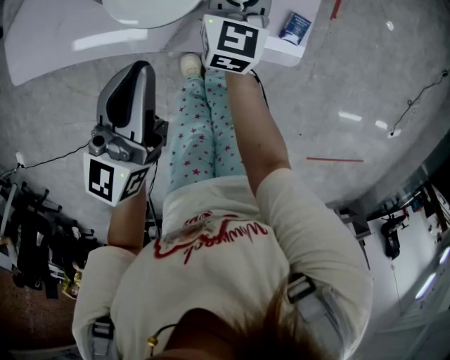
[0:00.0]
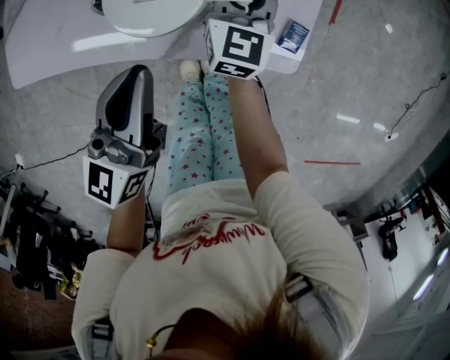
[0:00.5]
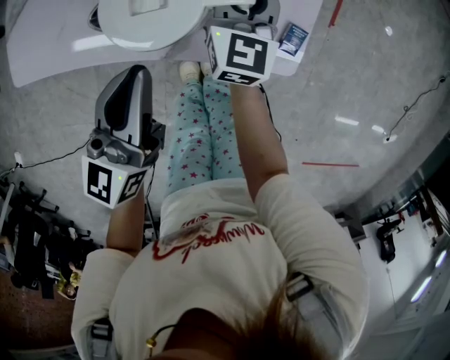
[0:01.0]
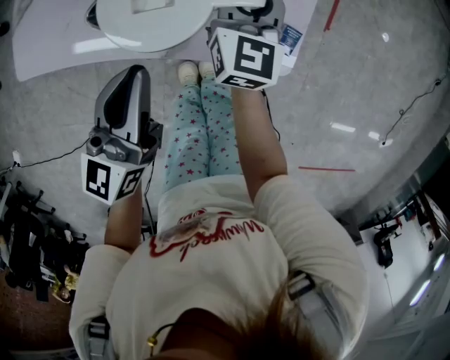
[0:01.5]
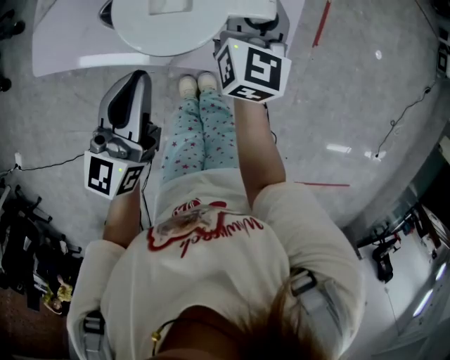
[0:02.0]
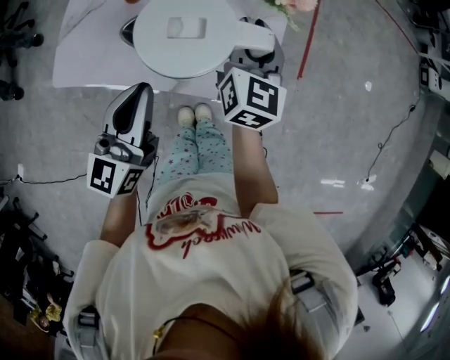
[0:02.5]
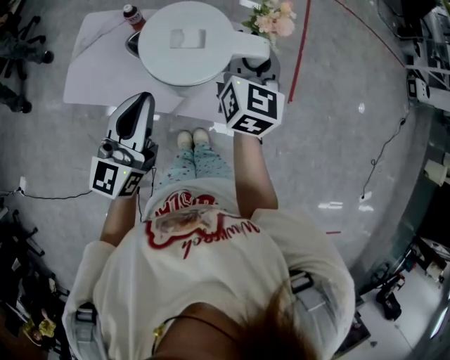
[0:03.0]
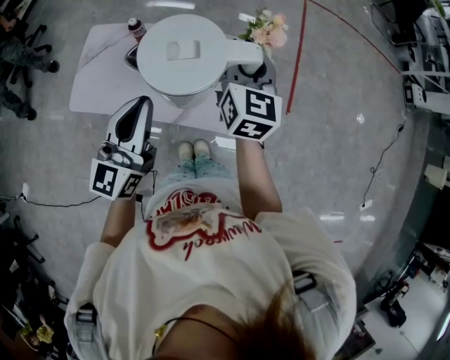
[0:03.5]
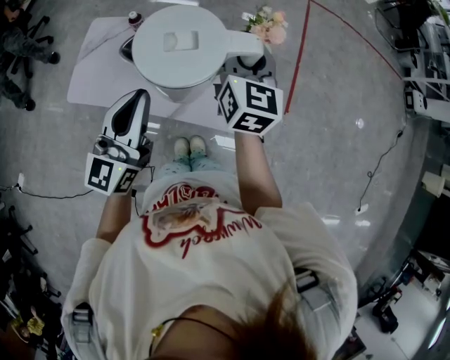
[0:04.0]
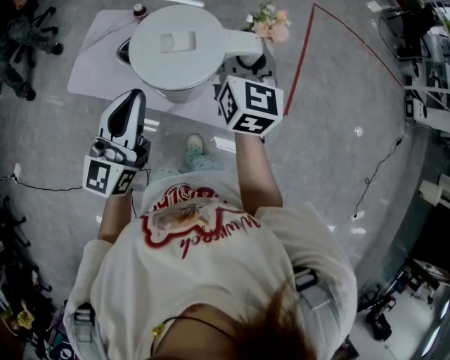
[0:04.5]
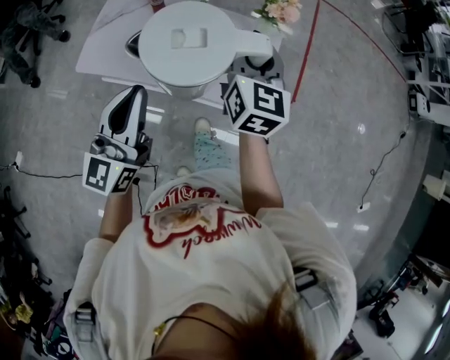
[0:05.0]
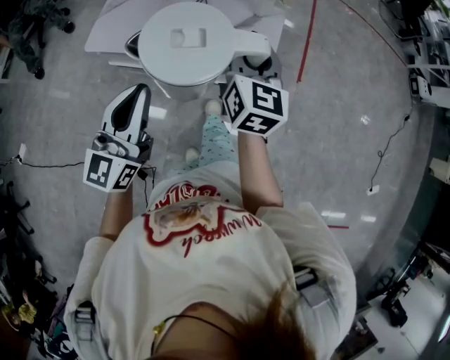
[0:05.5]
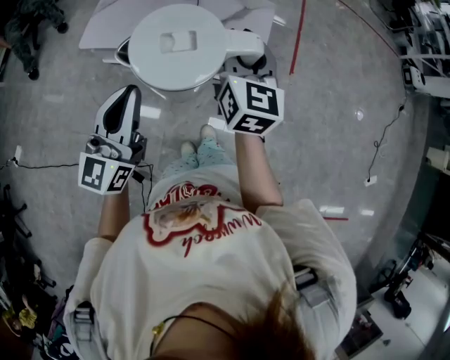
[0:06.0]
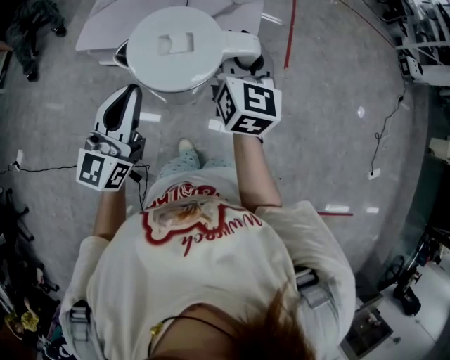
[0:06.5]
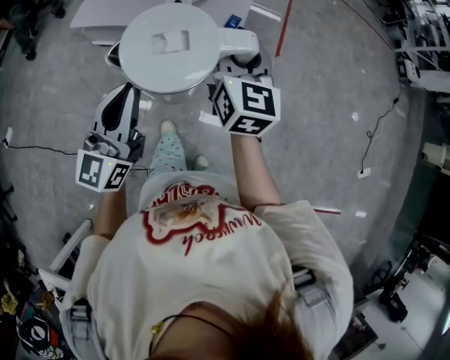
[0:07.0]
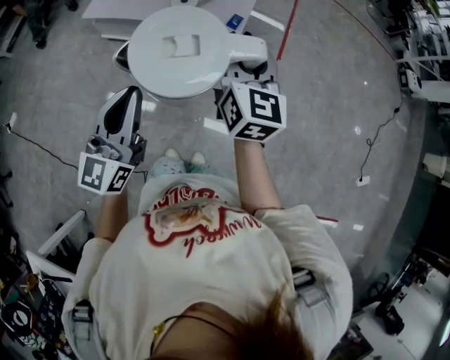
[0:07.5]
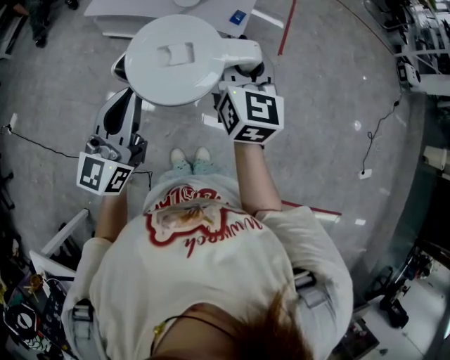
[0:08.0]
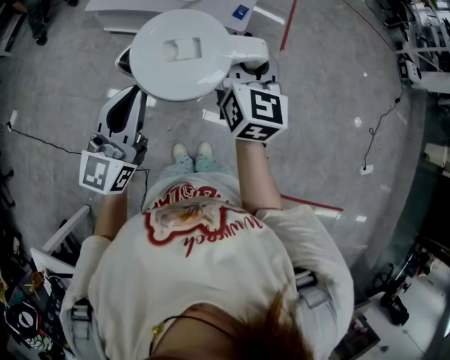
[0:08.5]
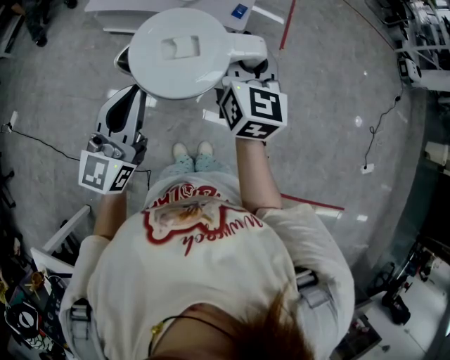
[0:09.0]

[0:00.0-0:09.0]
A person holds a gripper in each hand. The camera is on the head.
0:00.0 to 0:02.0: The left gripper shifts about 10 cm upward. Meanwhile the right gripper goes some 20 cm upward.
0:02.0 to 0:04.5: The two grippers go approximately 20 cm upward.
0:04.5 to 0:07.0: Both grippers are carried backward, approximately 50 cm.
0:07.0 to 0:09.0: The grippers both shift backward by some 15 cm.

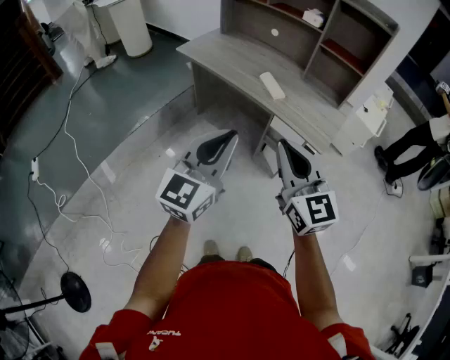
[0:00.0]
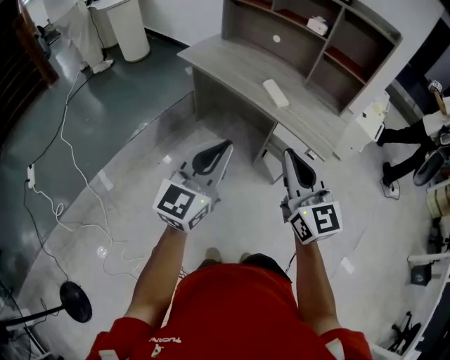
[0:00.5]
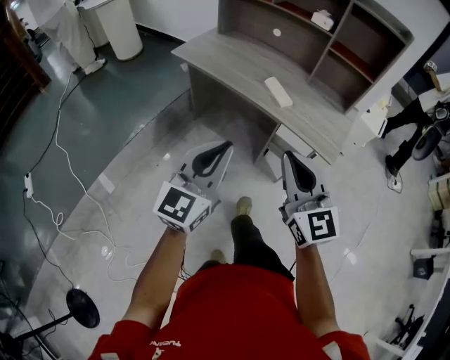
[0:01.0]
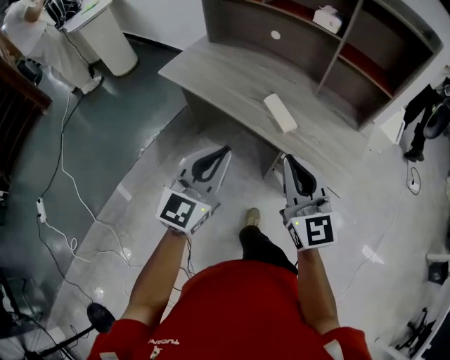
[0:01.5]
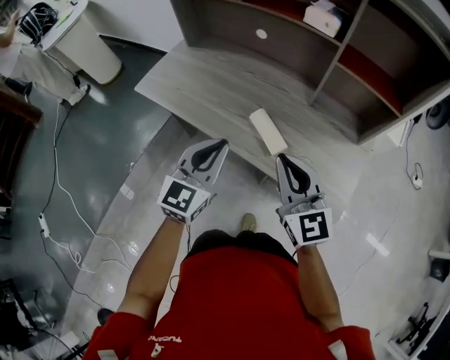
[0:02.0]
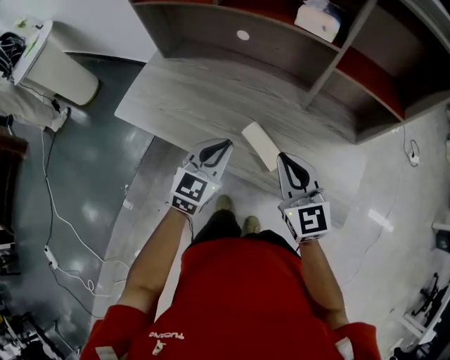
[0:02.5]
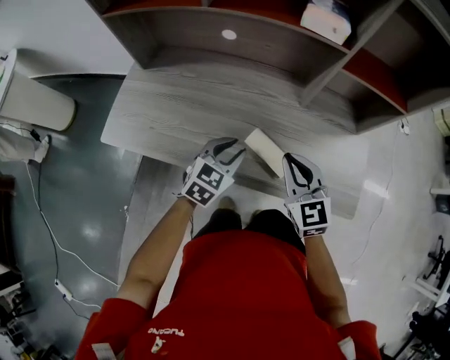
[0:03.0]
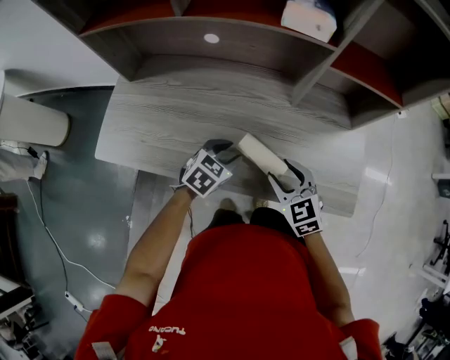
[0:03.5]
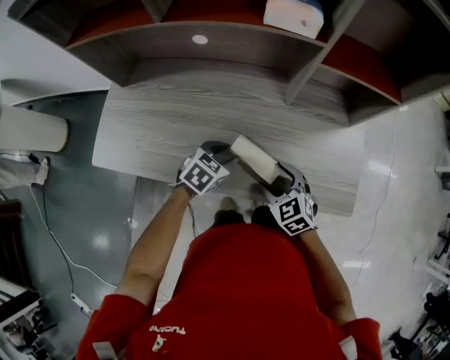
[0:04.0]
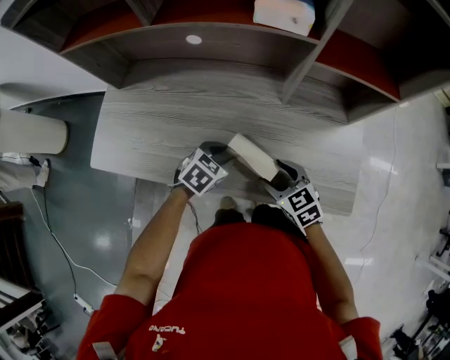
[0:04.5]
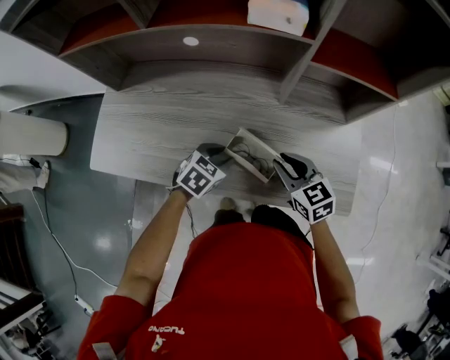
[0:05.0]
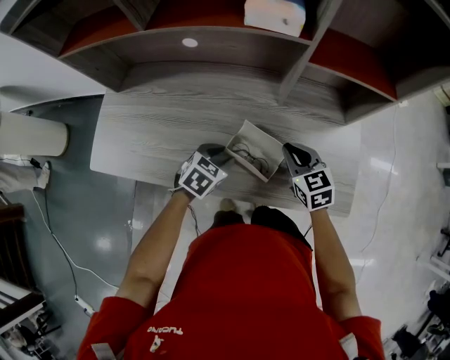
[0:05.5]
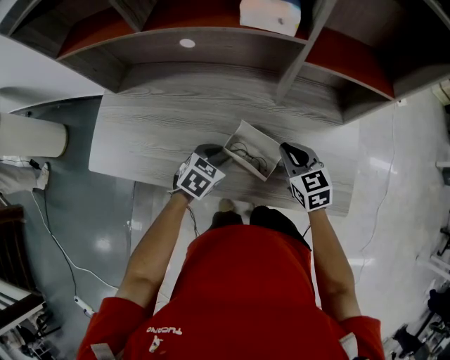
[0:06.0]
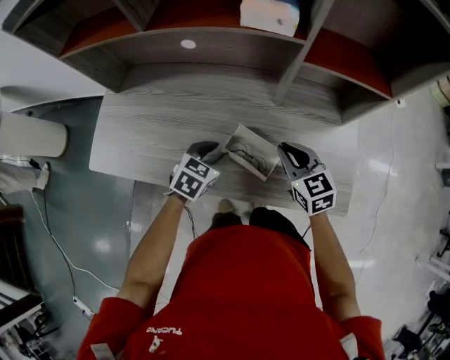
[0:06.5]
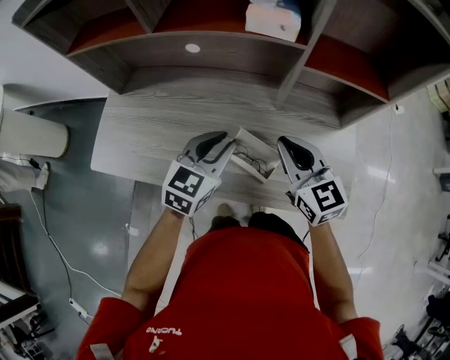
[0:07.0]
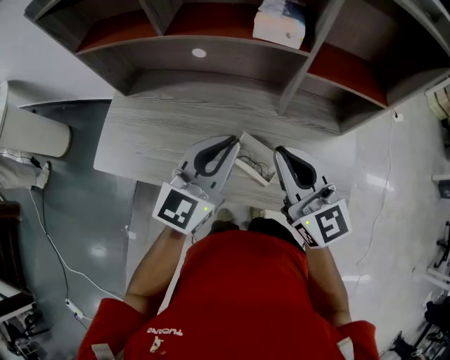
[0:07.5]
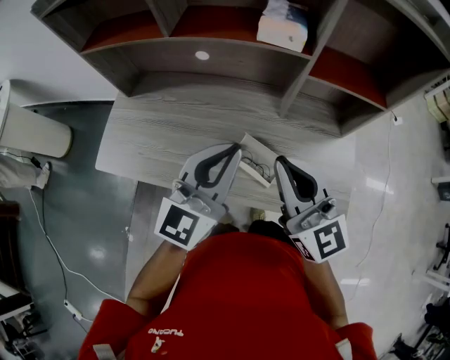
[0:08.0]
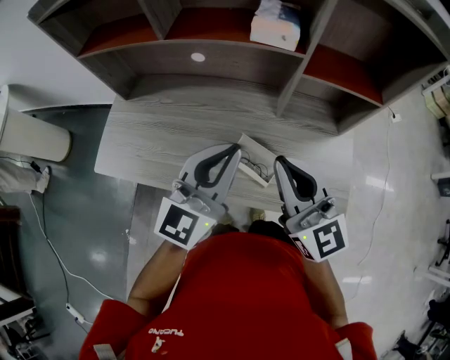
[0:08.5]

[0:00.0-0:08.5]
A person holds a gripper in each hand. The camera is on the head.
0:00.0 to 0:02.0: The two grippers go approximately 40 cm forward.
0:02.0 to 0:04.0: Both grippers travel together downward, about 20 cm. The right gripper tilts its fingers roughly 40 degrees downward, and opens up. The left gripper tips its fingers downward by some 40 degrees, and opens its fingers.
0:04.0 to 0:06.5: The right gripper heads forward and upward, covering some 10 cm, swivels roughly 20 degrees, and closes its fingers.
0:06.5 to 0:08.5: Both grippers move upward, about 25 cm. The right gripper angles its fingers upward, by roughly 30 degrees. Meanwhile the left gripper points its fingers approximately 50 degrees further upward, and closes its fingers.

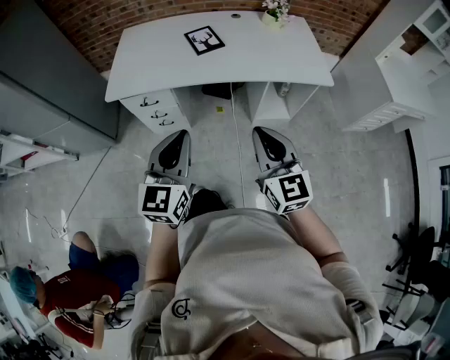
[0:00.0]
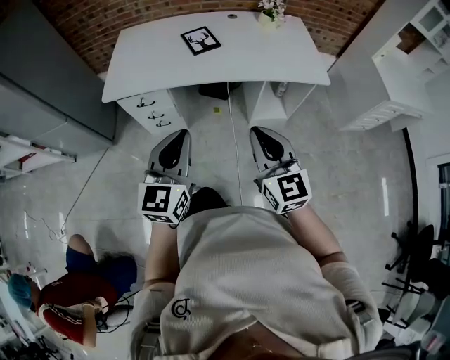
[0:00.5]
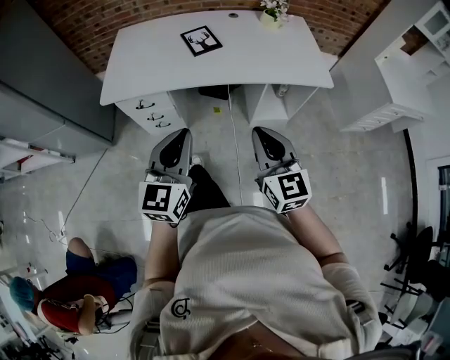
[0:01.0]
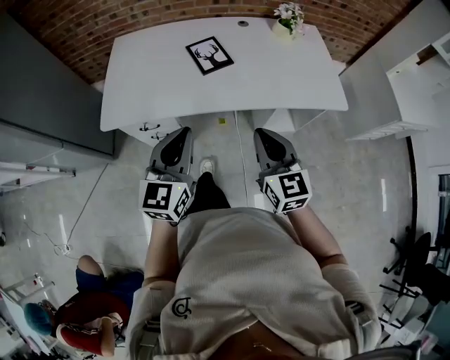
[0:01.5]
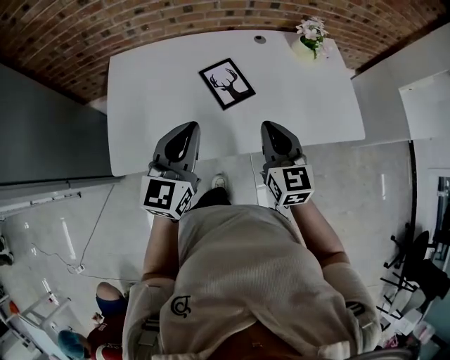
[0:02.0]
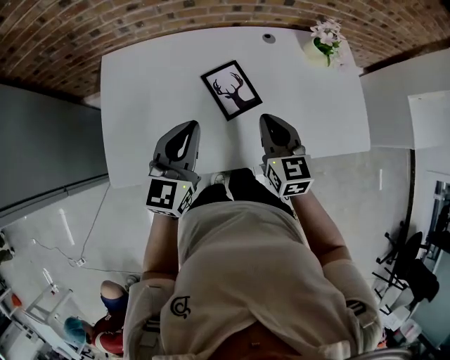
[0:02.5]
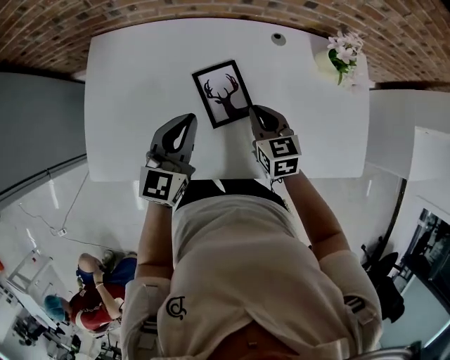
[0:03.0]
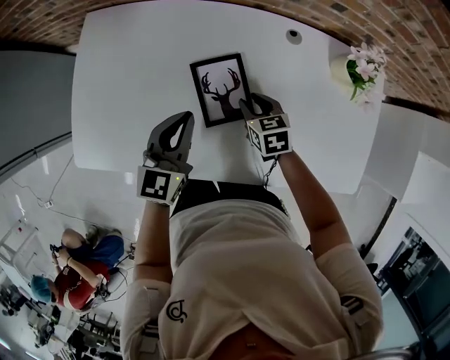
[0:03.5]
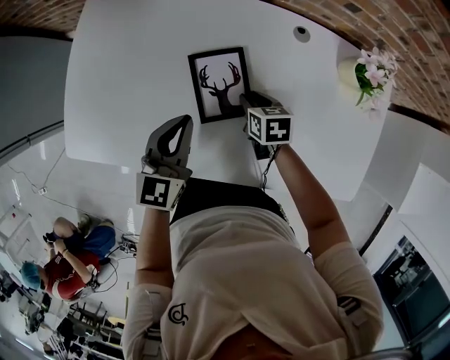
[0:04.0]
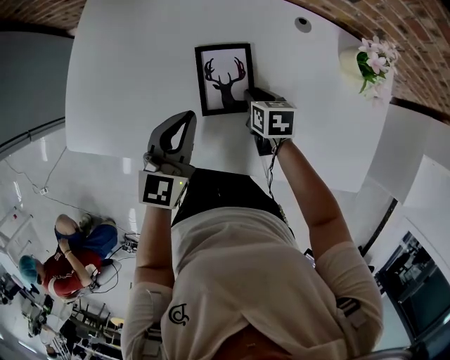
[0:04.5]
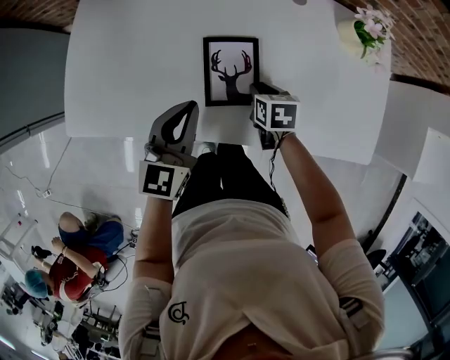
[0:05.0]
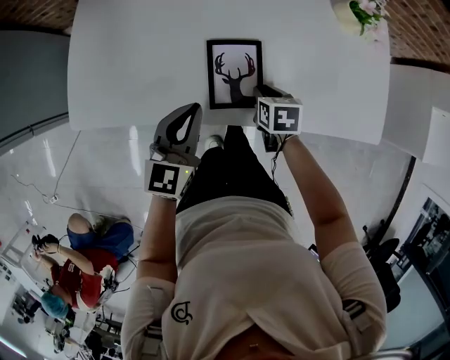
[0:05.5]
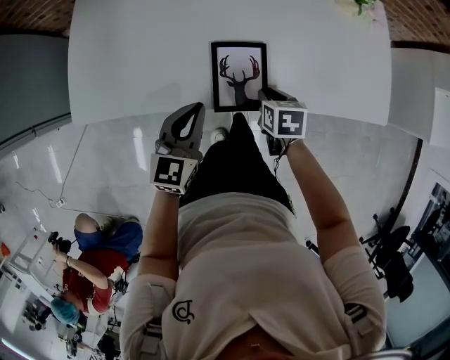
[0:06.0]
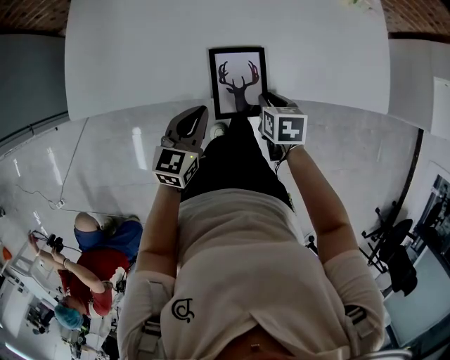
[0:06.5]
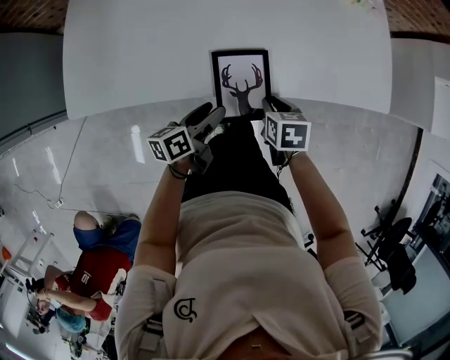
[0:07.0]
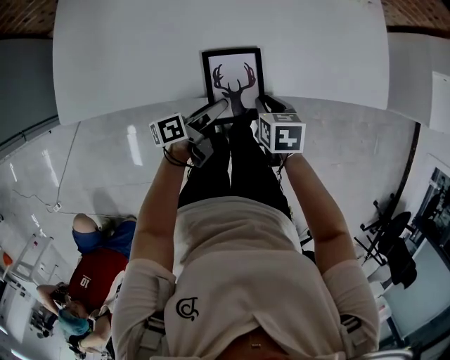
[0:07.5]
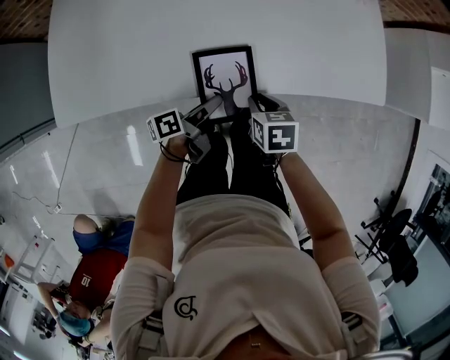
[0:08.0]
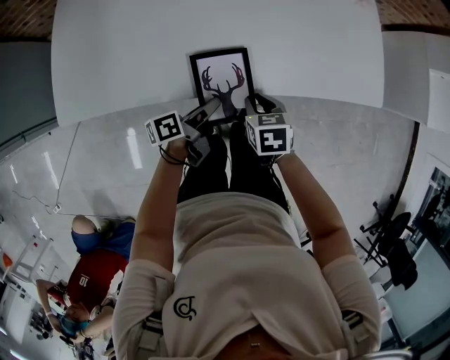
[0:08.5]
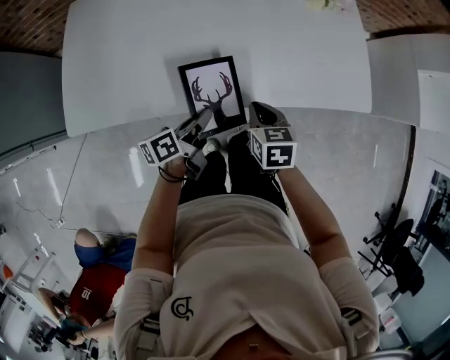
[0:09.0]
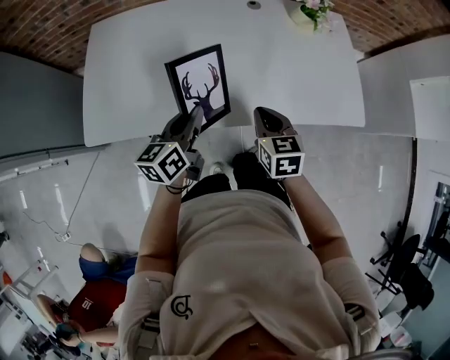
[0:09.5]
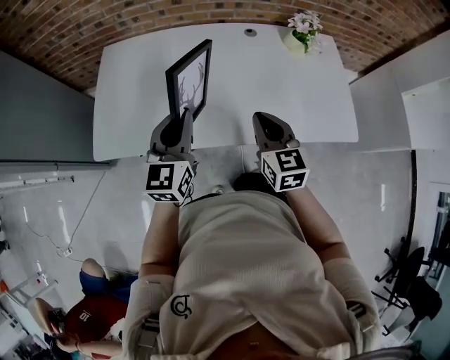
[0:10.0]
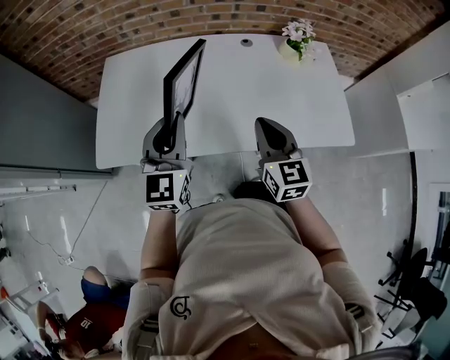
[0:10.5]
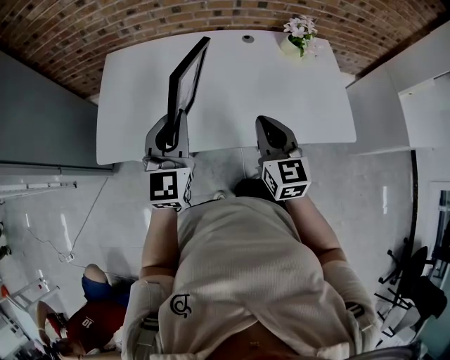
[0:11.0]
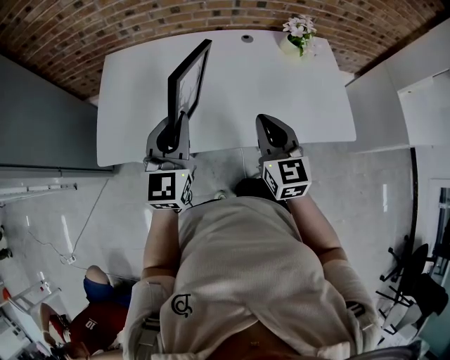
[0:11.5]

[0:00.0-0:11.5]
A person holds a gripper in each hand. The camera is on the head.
0:00.0 to 0:02.0: The two grippers go about 40 cm forward.
0:02.0 to 0:04.0: The right gripper moves downward, about 25 cm, tips its fingers downward by roughly 40 degrees, and opens its fingers, while the left gripper ends up about 20 cm from where it was, and swivels roughly 20 degrees.
0:04.0 to 0:06.0: The grippers both shift backward by some 20 cm.
0:06.0 to 0:07.5: The left gripper heads downward and to the right, covering about 15 cm, rolls counterclockwise, seen from behind, by some 70 degrees, and opens up, while the right gripper heads backward, covering about 5 cm.
0:07.5 to 0:09.5: The two grippers go some 15 cm upward. The right gripper swivels roughly 30 degrees. Meanwhile the left gripper rotates around the line of its fingers by about 50 degrees, clockwise from behind, and closes up.
0:09.5 to 0:11.5: The two grippers go approximately 15 cm upward. The right gripper rotates roughly 30 degrees. The left gripper twists roughly 40 degrees clockwise, seen from behind.
